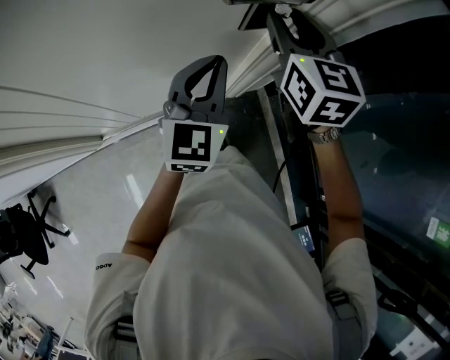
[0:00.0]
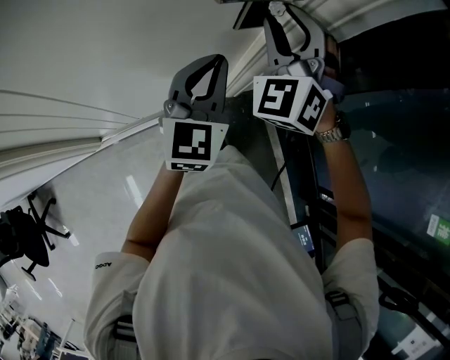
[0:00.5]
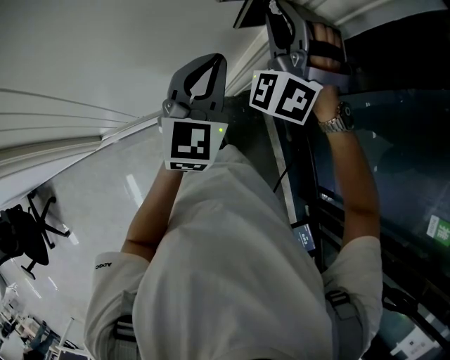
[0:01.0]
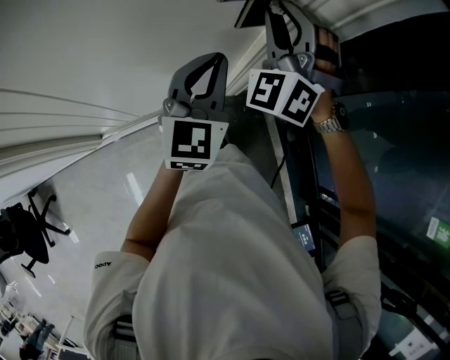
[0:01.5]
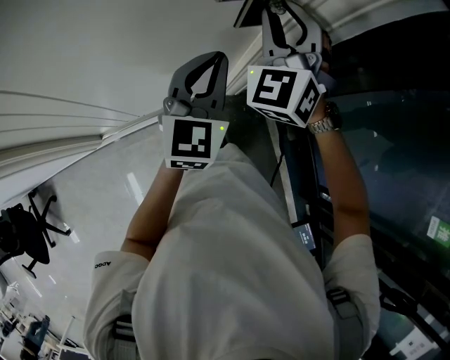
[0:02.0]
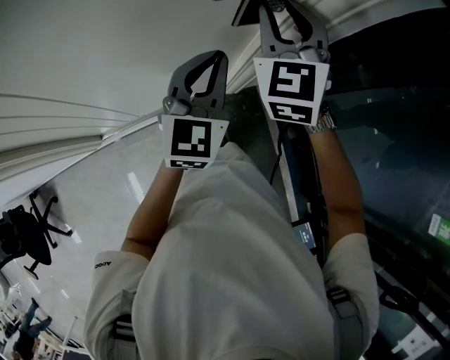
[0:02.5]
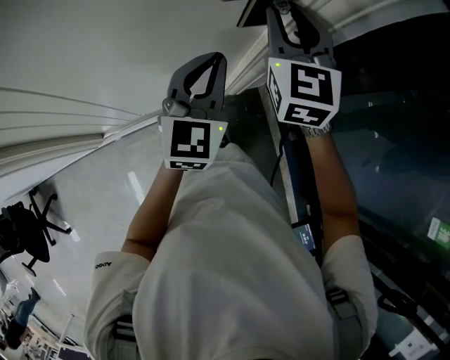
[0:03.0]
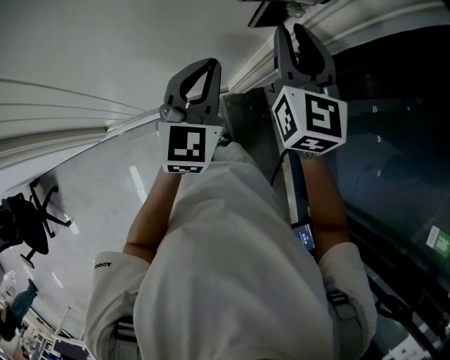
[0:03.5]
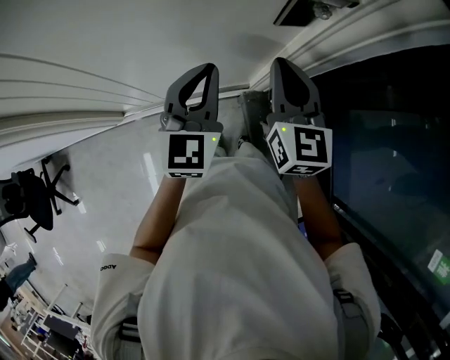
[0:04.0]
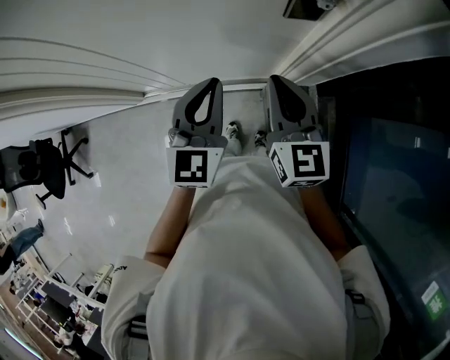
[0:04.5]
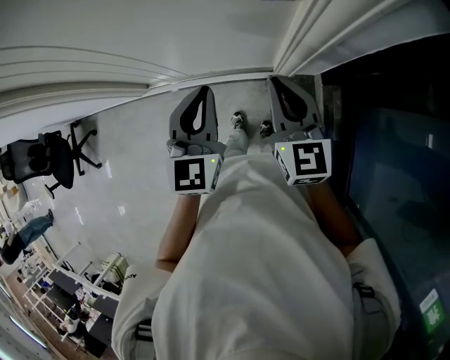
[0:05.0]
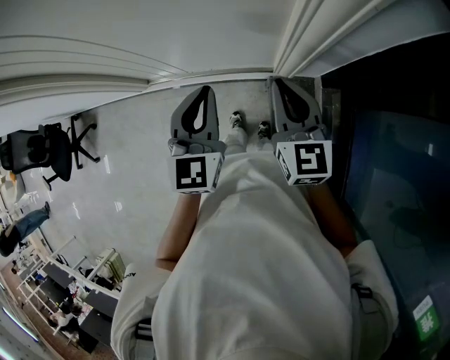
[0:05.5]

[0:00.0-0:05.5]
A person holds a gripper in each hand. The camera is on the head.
0:00.0 to 0:02.0: The right gripper twists about 50 degrees counterclockwise, seen from behind.
0:02.0 to 0:03.5: The right gripper rotates around the line of its fingers by roughly 40 degrees, clockwise from behind.
0:03.5 to 0:05.5: The right gripper goes approximately 15 cm downward, rotates some 30 degrees, and closes up; the left gripper ends up about 10 cm from where it was, and changes its angle by roughly 20 degrees.

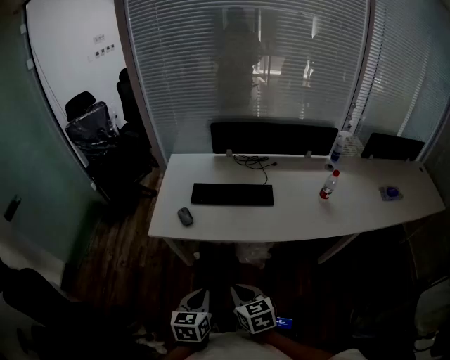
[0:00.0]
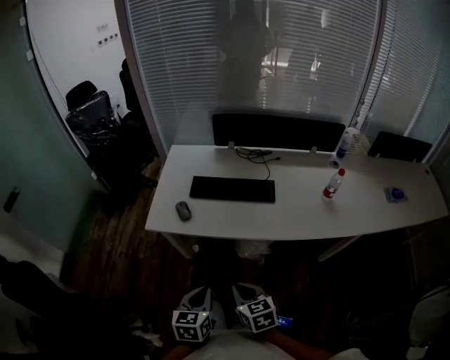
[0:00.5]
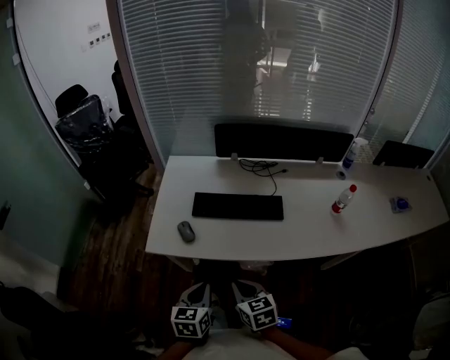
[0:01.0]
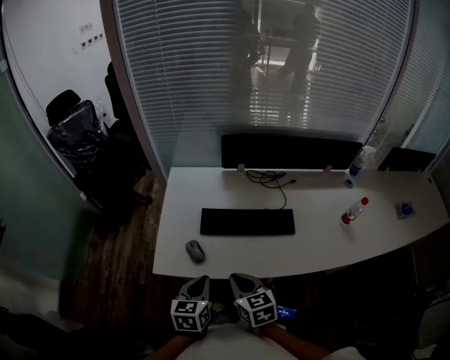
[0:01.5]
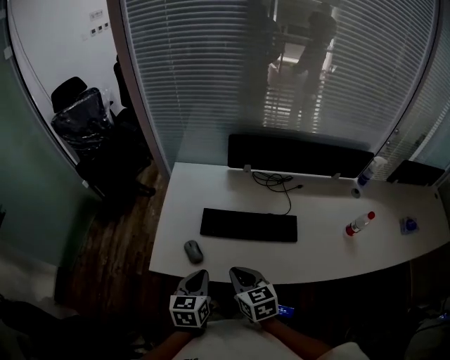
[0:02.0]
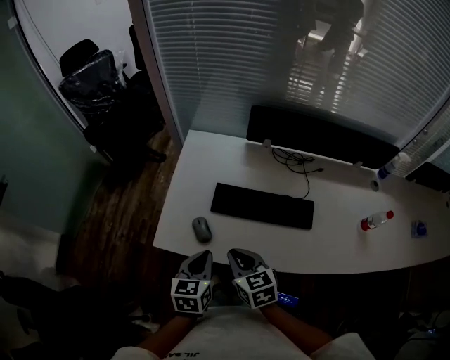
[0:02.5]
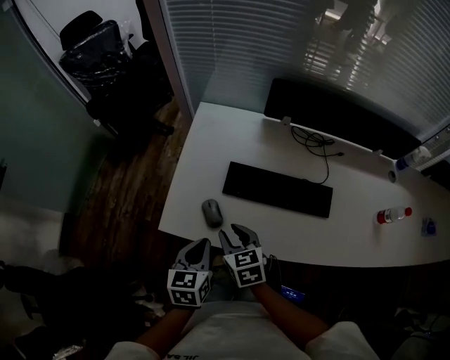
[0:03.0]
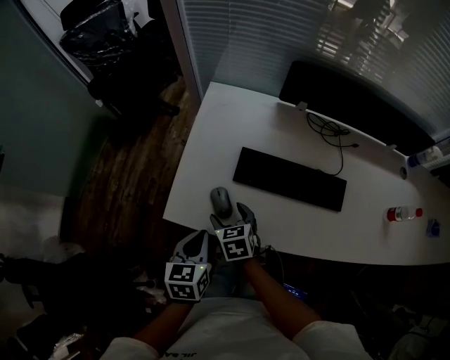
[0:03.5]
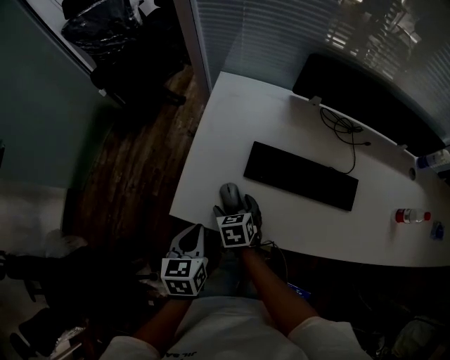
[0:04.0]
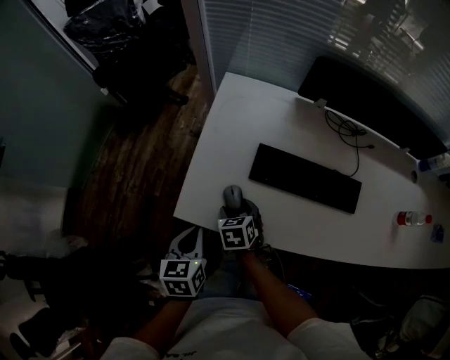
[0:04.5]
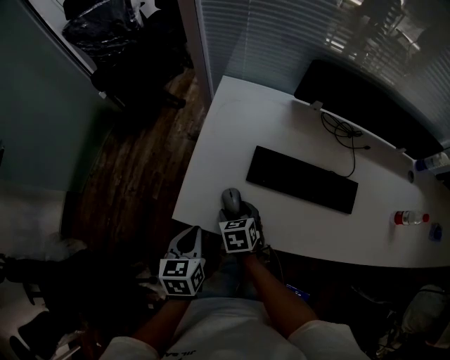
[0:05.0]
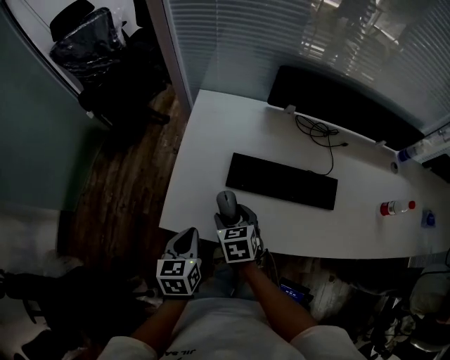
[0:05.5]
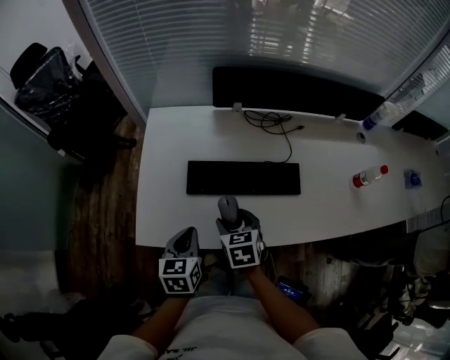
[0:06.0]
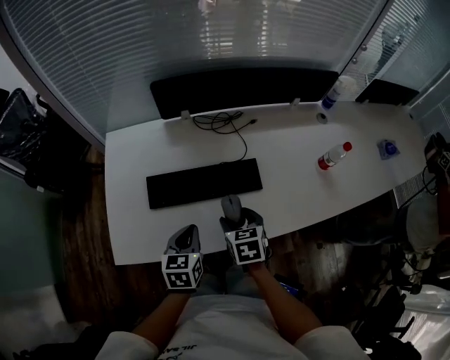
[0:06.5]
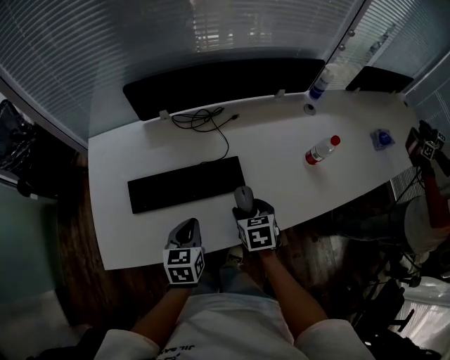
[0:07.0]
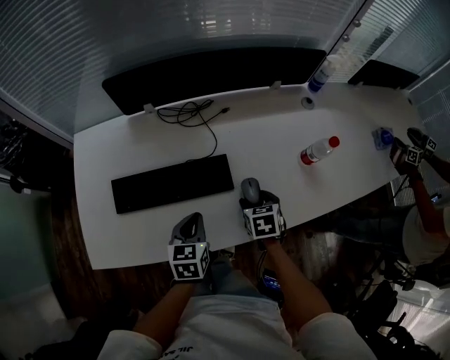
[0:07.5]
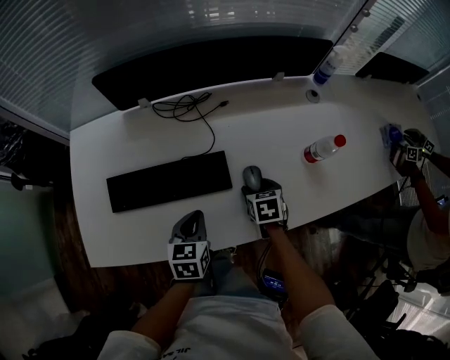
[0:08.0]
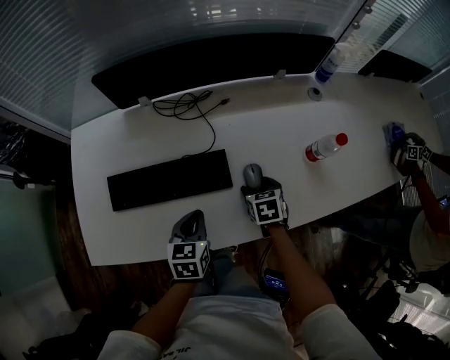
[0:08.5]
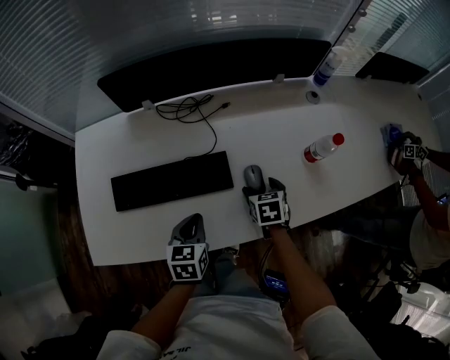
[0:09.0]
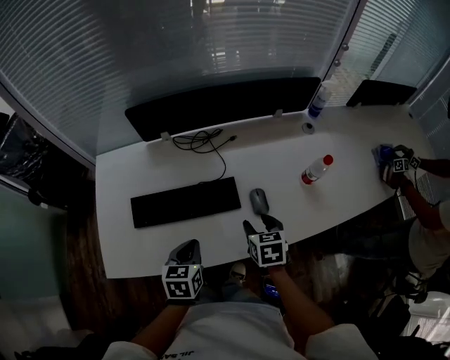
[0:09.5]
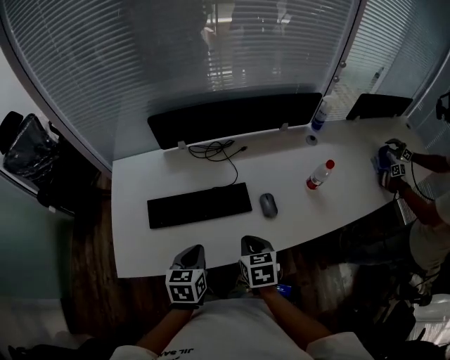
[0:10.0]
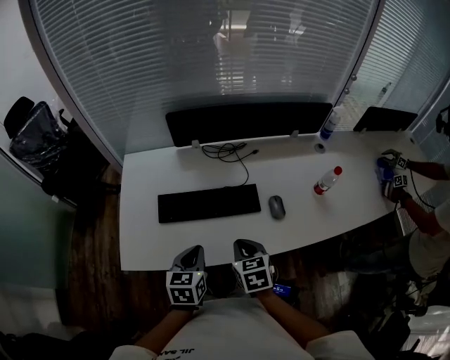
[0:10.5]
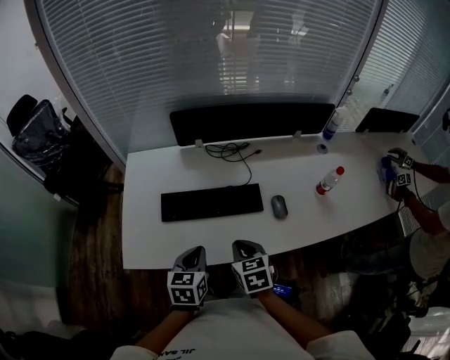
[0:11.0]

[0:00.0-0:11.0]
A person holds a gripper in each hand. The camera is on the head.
0:00.0 to 0:02.0: Both grippers move forward, some 30 cm.
0:02.0 to 0:03.5: The right gripper is displaced downward, to the left and forward by roughly 25 cm, and opens up. The left gripper travels to the left and downward by about 10 cm.
0:05.5 to 0:07.5: The right gripper changes place by roughly 50 cm, and swivels about 30 degrees. The left gripper changes place by roughly 40 cm, and rotates about 30 degrees.
0:07.5 to 0:09.0: The right gripper shifts by about 5 cm.
0:09.0 to 0:11.0: The right gripper moves to the left, upward and backward, about 30 cm, and closes up, while the left gripper heads to the left, upward and backward, covering about 20 cm.

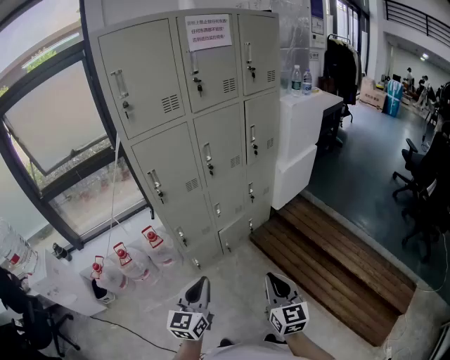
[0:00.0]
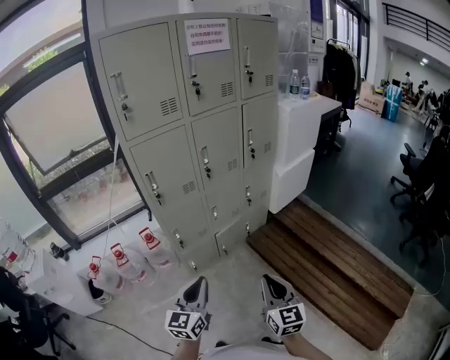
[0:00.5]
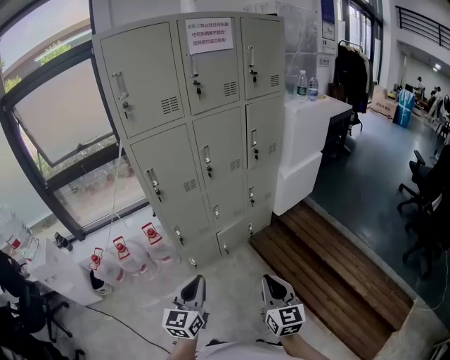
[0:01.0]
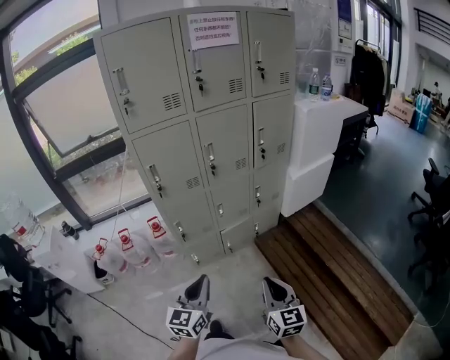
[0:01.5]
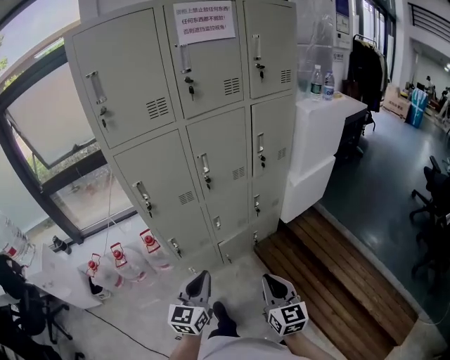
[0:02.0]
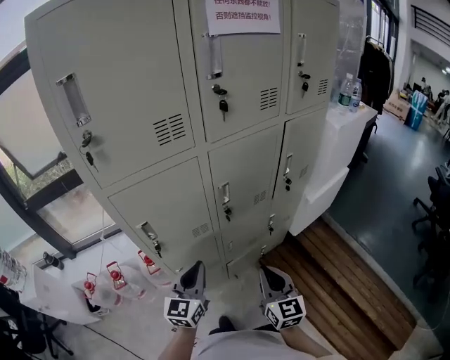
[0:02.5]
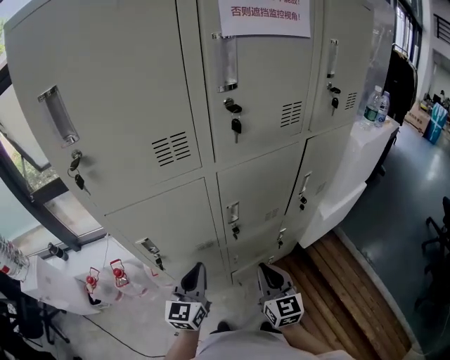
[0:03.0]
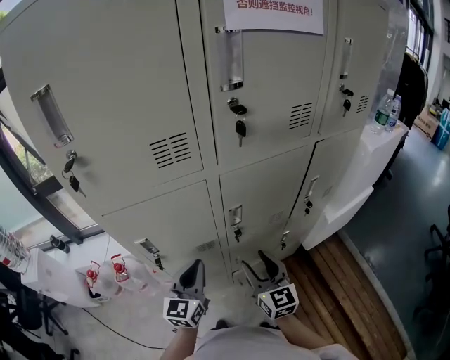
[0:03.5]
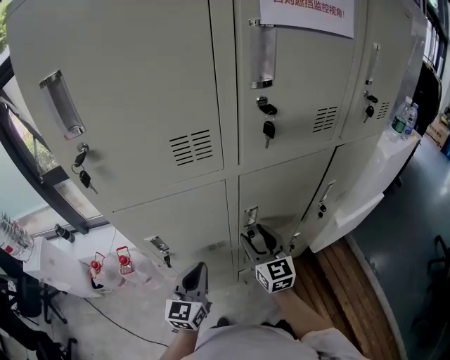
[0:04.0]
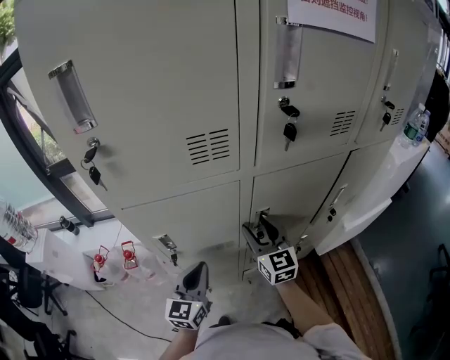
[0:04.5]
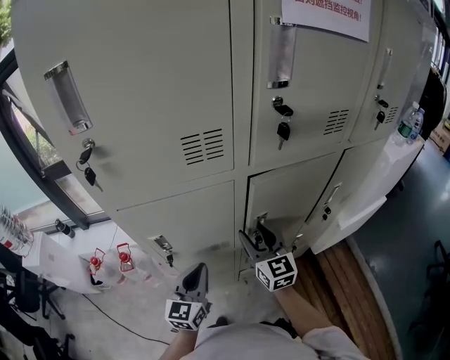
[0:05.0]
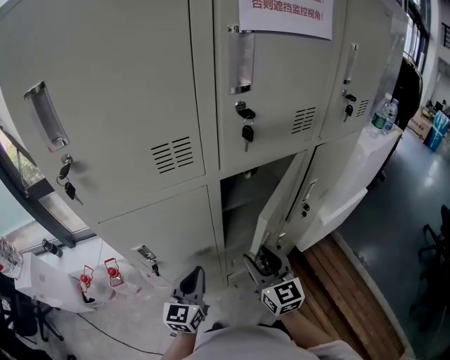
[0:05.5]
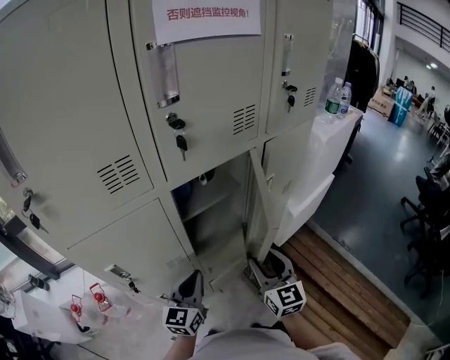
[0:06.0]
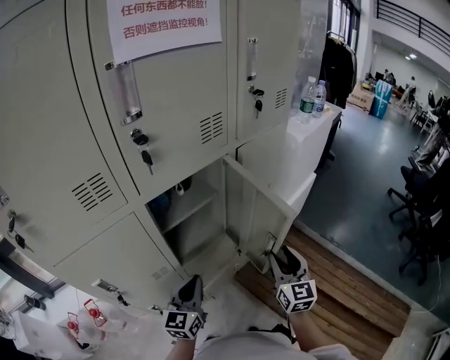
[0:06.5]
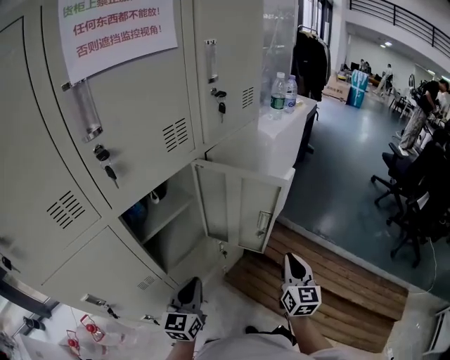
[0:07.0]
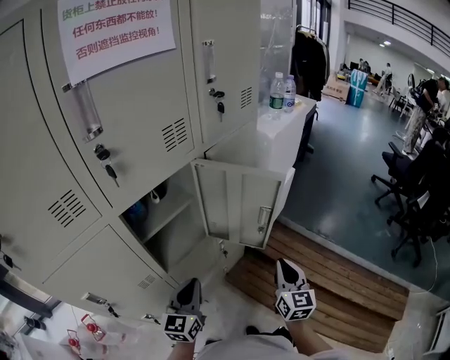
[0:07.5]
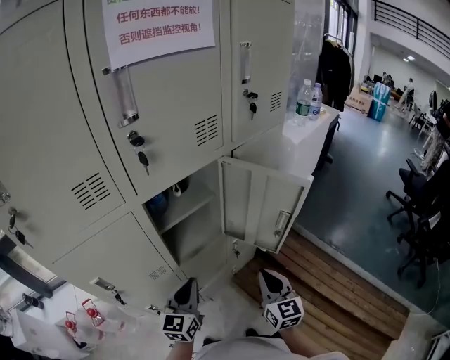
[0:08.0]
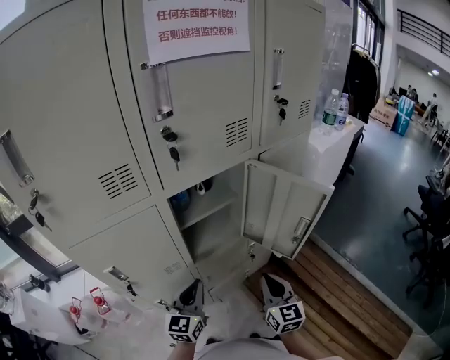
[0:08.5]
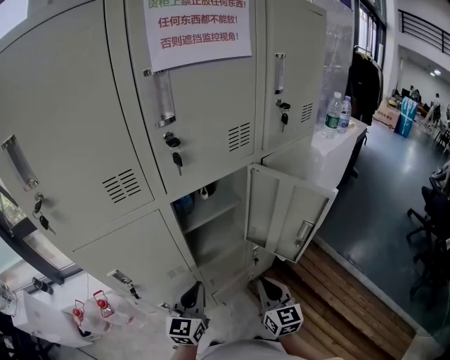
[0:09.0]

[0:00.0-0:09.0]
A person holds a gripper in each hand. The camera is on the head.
0:00.0 to 0:02.0: The left gripper moves forward and to the right, approximately 15 cm, while the right gripper goes approximately 15 cm forward.
0:02.0 to 0:04.5: The right gripper is displaced forward by about 50 cm, turns by about 20 degrees, and opens. The left gripper shifts about 30 cm forward.
0:04.5 to 0:07.0: The right gripper changes place by roughly 40 cm, turns by approximately 60 degrees, and closes; the left gripper changes place by about 25 cm, and turns by roughly 30 degrees.
0:07.0 to 0:09.0: The right gripper heads to the left, covering some 20 cm, and rotates about 30 degrees. The left gripper heads to the left, covering some 10 cm.

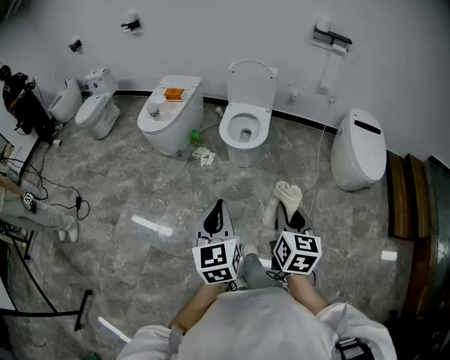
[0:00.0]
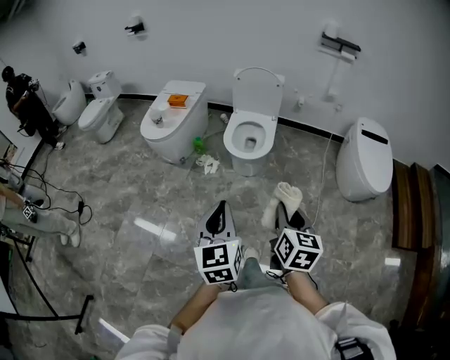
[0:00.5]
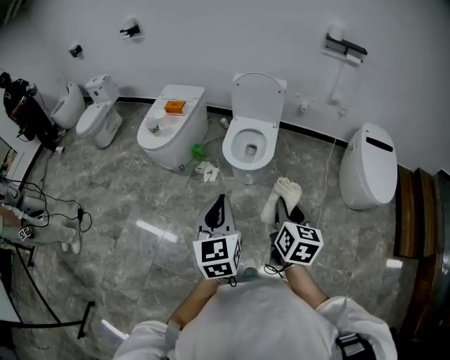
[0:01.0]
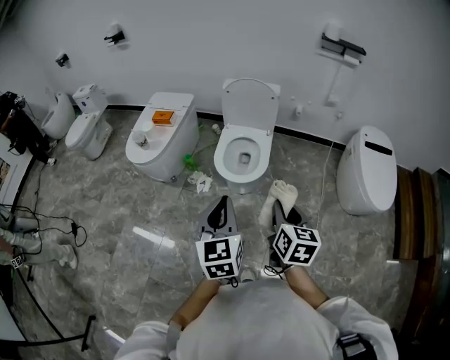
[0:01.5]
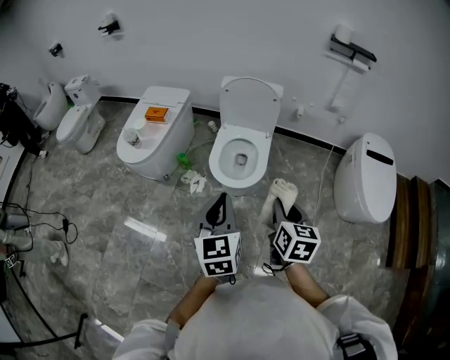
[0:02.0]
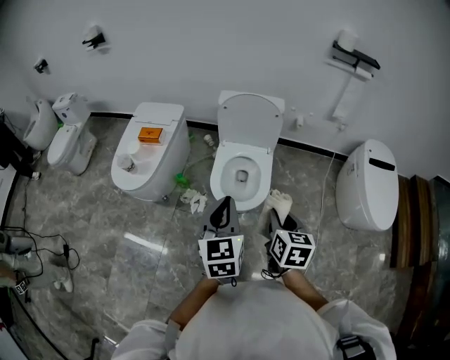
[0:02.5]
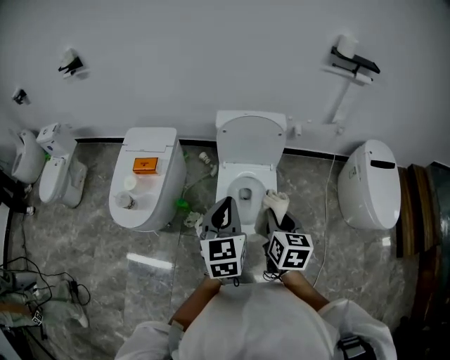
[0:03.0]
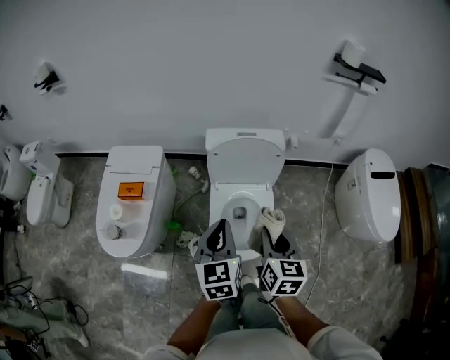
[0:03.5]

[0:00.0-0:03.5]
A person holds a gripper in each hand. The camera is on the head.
0:00.0 to 0:02.0: Both grippers travel together forward, about 35 cm.
0:02.0 to 0:03.5: The left gripper travels forward by about 35 cm; the right gripper shifts roughly 35 cm forward and to the left.
